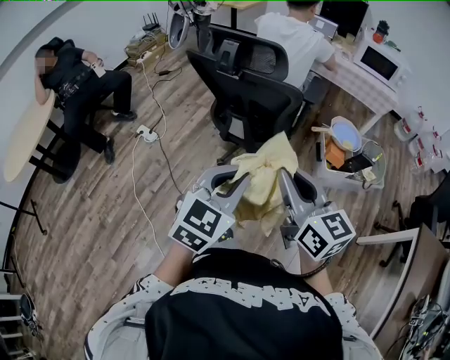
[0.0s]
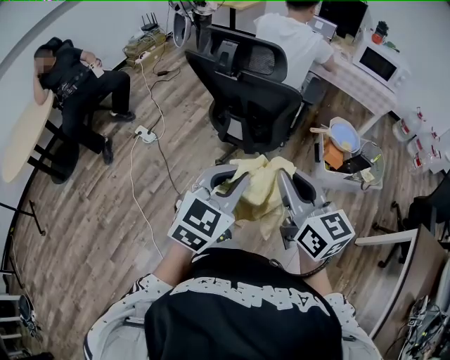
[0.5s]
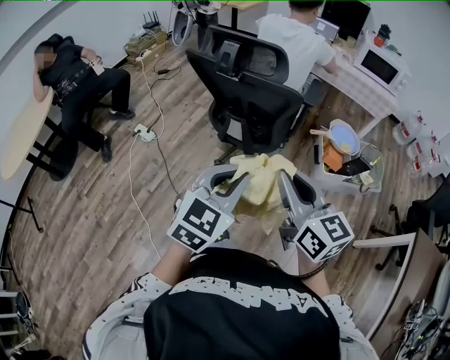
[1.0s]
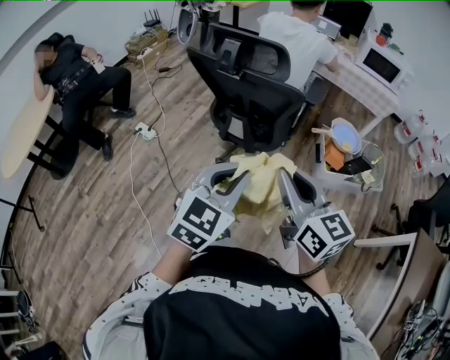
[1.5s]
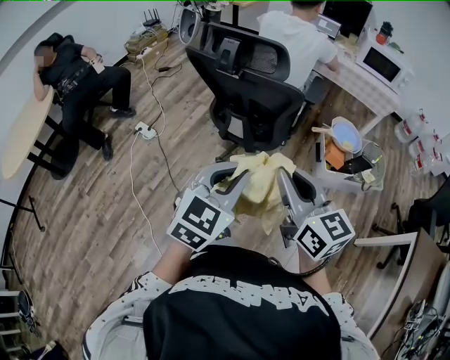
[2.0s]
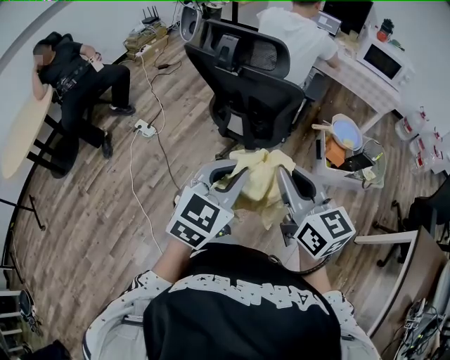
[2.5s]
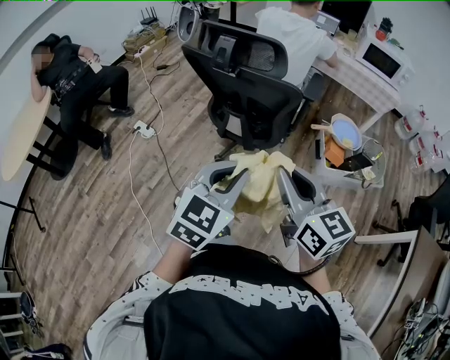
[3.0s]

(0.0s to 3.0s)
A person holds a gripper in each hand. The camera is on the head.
0.0s - 1.5s: The grippers stay close to where they were, moving slightly.
1.5s - 3.0s: Both grippers stay put.

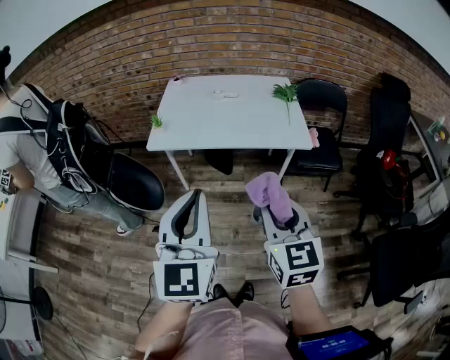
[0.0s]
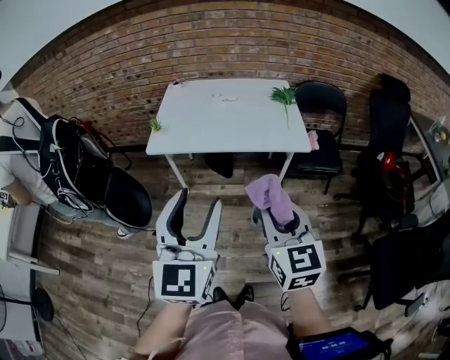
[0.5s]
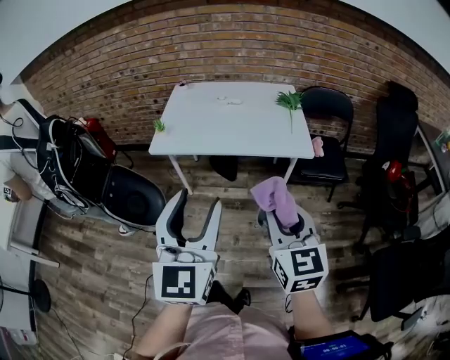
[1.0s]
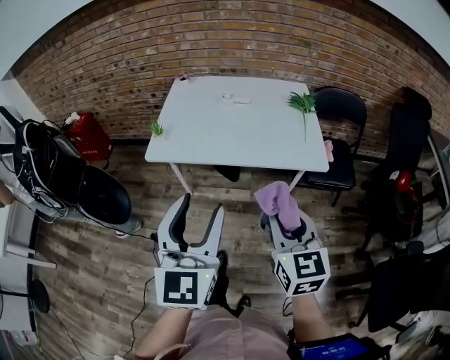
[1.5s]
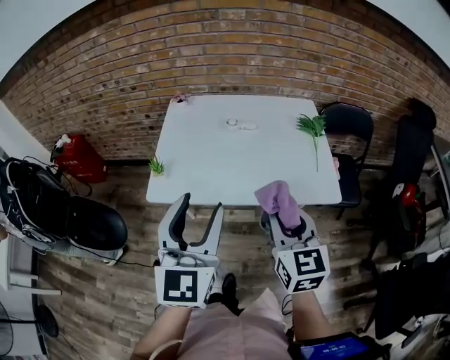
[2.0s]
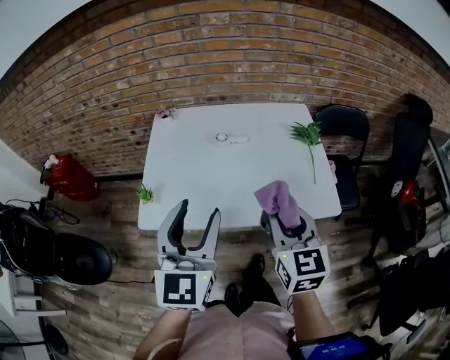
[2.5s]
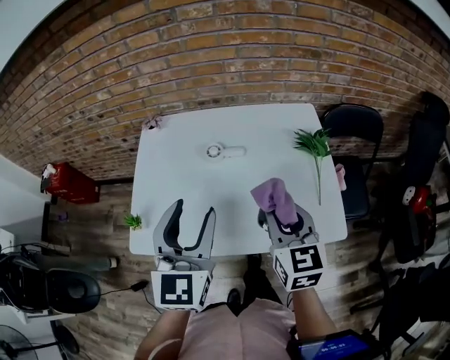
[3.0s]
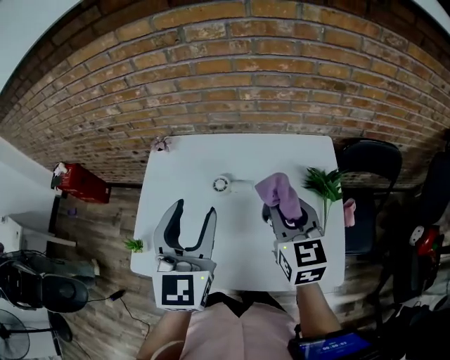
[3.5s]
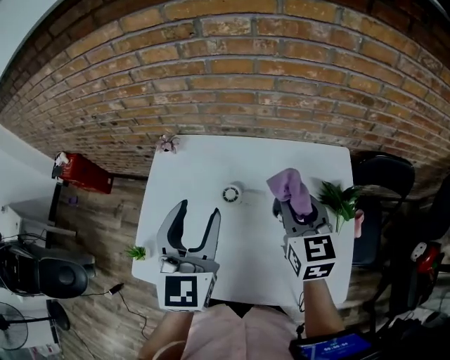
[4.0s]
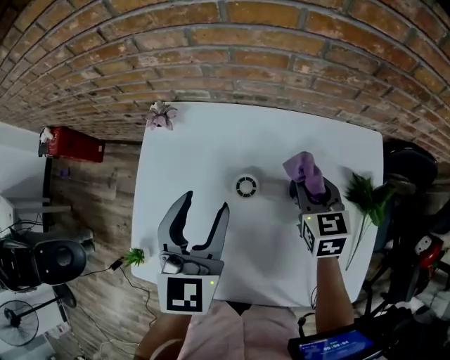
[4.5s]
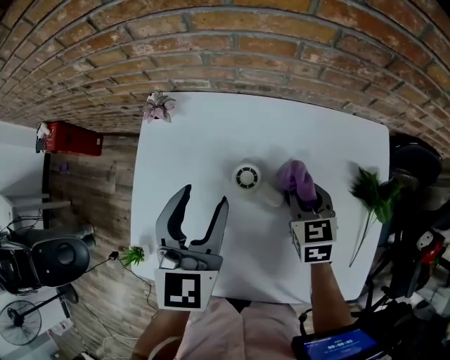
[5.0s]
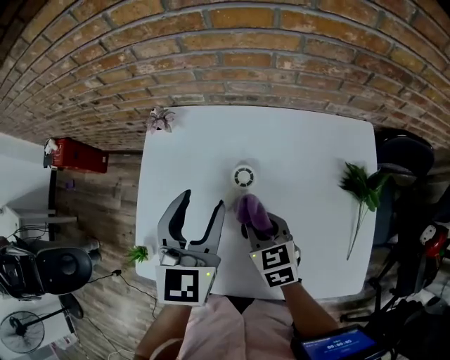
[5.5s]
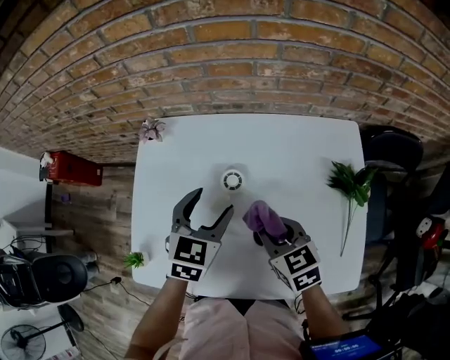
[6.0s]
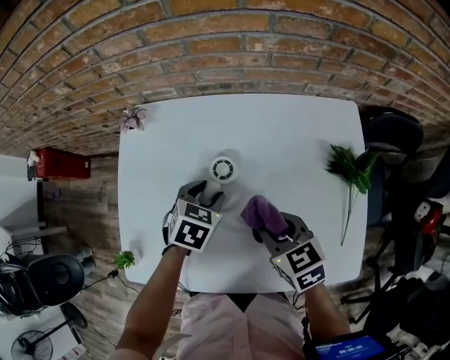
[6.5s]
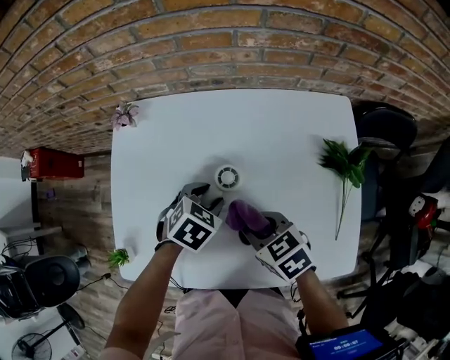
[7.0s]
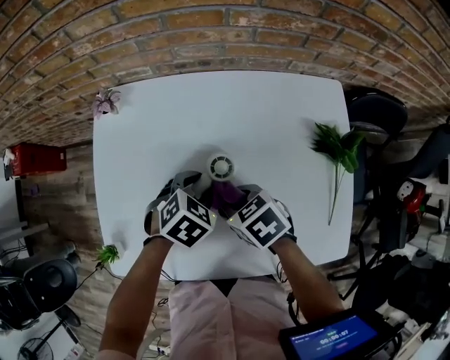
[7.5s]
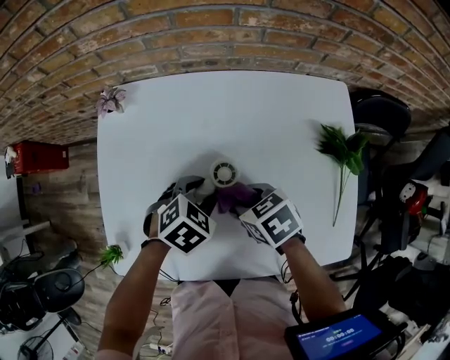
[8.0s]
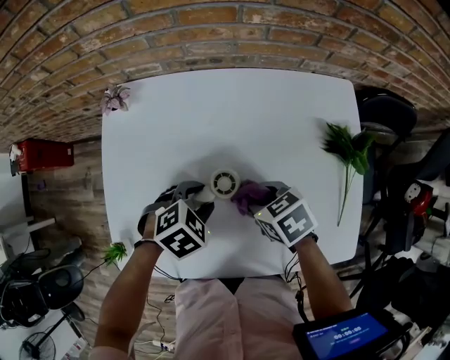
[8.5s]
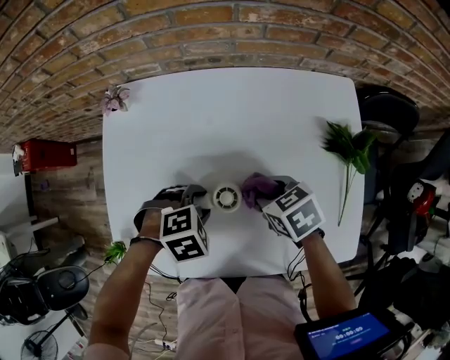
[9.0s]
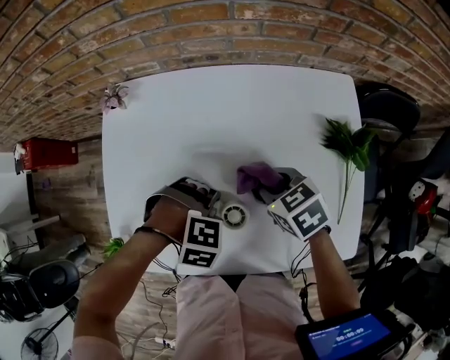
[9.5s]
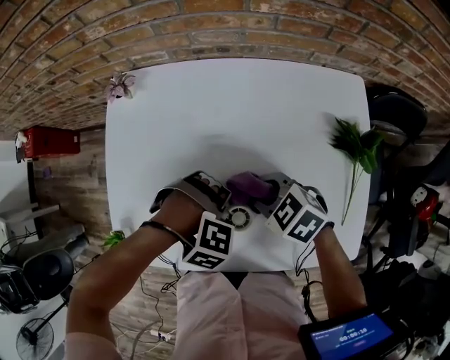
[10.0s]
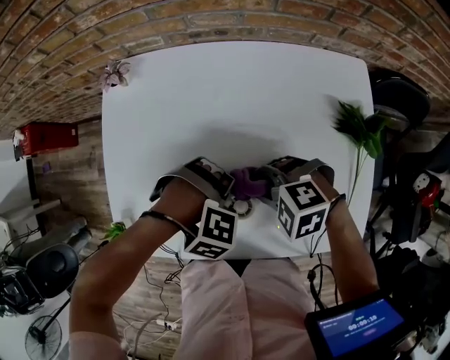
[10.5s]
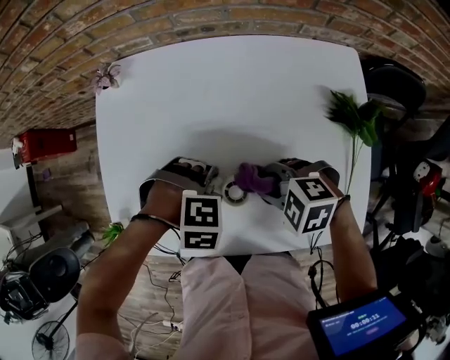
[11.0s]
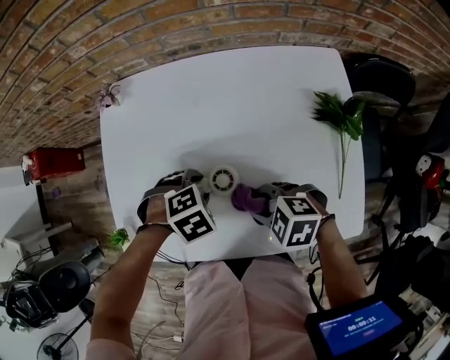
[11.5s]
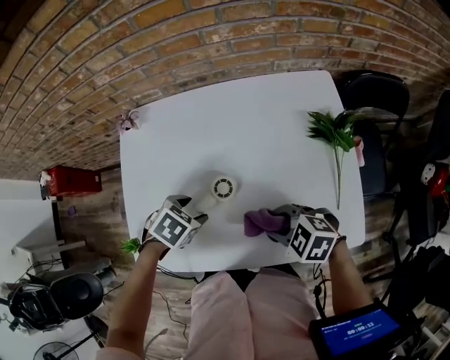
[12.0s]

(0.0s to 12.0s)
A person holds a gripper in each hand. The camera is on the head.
0.0s - 2.0s: The two grippers go roughly 25 cm forward. The left gripper opens.
2.0s - 4.0s: The two grippers go approximately 40 cm forward.
4.0s - 6.0s: The right gripper goes about 15 cm downward, to the left and backward, and swivels approximately 30 degrees. Meanwhile the left gripper goes some 15 cm downward, and swivels roughly 30 degrees.
6.0s - 8.0s: The right gripper is displaced downward by some 5 cm, and swivels some 20 degrees; the left gripper is displaced downward by about 10 cm, and changes its angle by roughly 40 degrees.
8.0s - 10.0s: The left gripper moves some 10 cm, and rotates around the line of its fingers by roughly 70 degrees, clockwise from behind. Meanwhile the right gripper changes its angle by approximately 30 degrees.
10.0s - 12.0s: The right gripper shifts by some 15 cm. The left gripper changes place by roughly 5 cm, and rolls counterclockwise, seen from behind, by roughly 70 degrees.

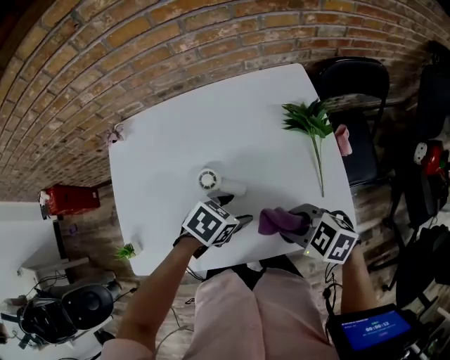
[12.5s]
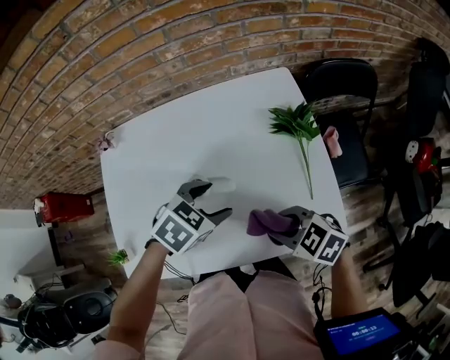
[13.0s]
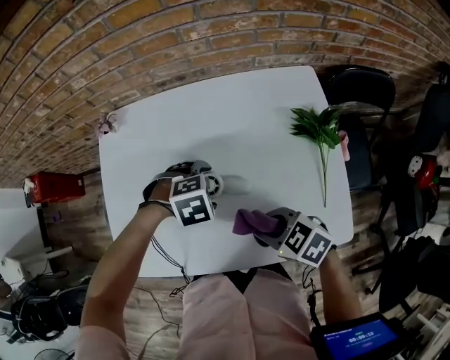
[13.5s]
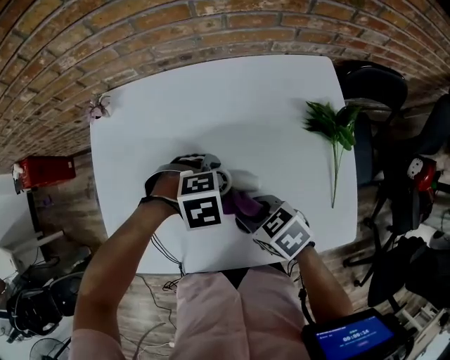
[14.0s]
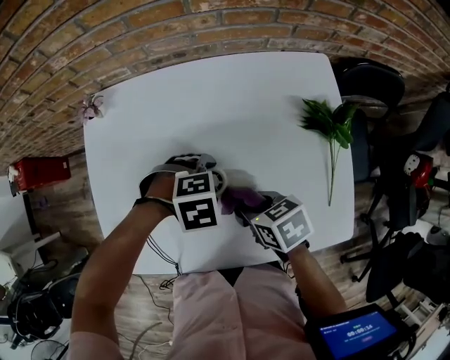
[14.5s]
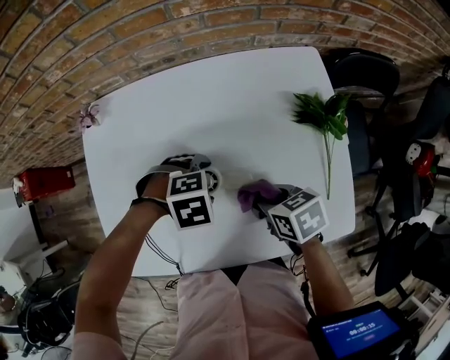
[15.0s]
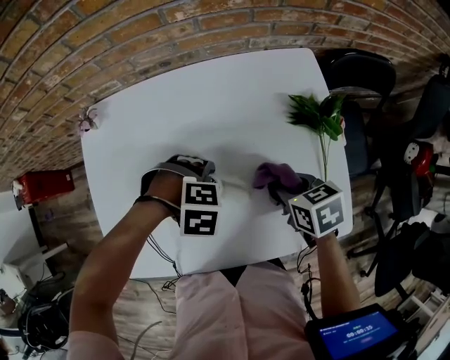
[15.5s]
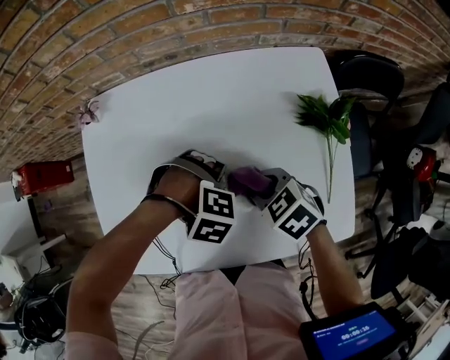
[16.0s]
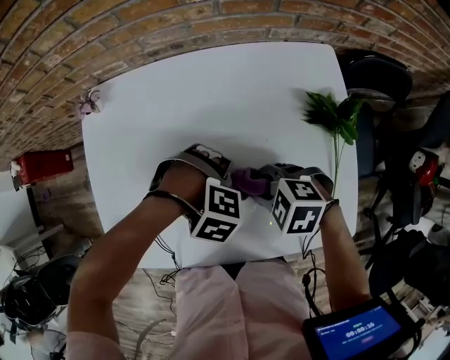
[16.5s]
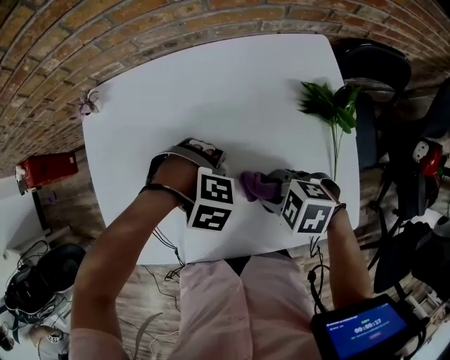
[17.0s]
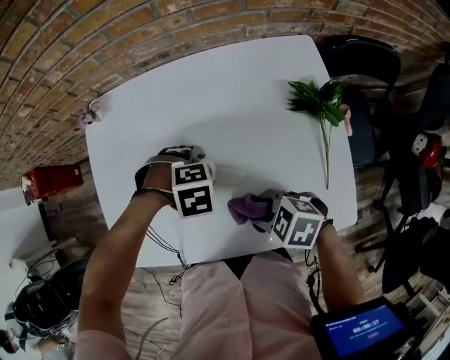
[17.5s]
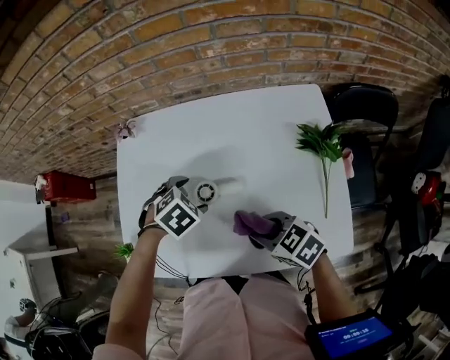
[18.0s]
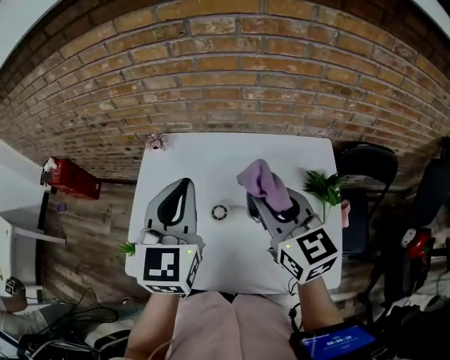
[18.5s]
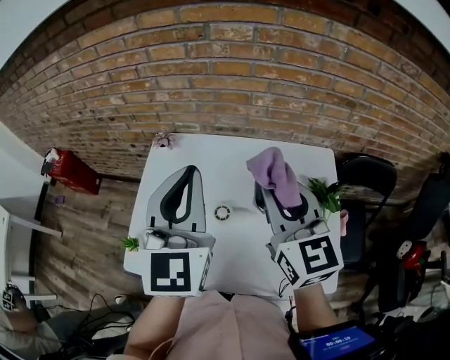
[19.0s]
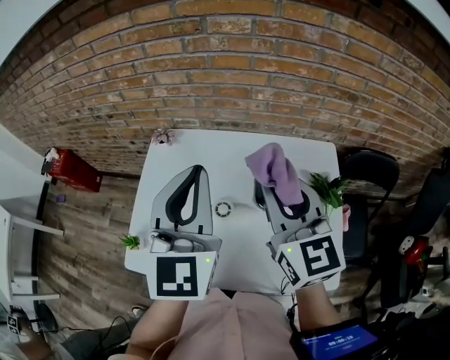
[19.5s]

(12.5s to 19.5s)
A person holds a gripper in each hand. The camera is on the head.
12.5s - 14.5s: The left gripper goes upward and returns, approximately 5 cm each way, and swivels about 40 degrees. Meanwhile the right gripper moves some 15 cm, and swivels approximately 40 degrees.
14.5s - 16.0s: The right gripper turns by about 30 degrees. Meanwhile the left gripper turns by roughly 30 degrees.
16.0s - 17.5s: The left gripper changes its angle by approximately 30 degrees; the right gripper shifts by approximately 10 cm, and turns by about 20 degrees.
17.5s - 19.5s: The two grippers go about 35 cm upward. The left gripper tilts its fingers about 90 degrees upward, and closes up. Meanwhile the right gripper points its fingers about 50 degrees further upward.

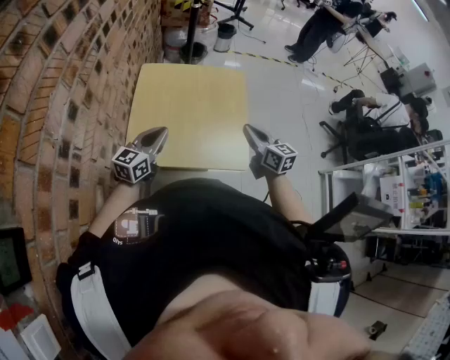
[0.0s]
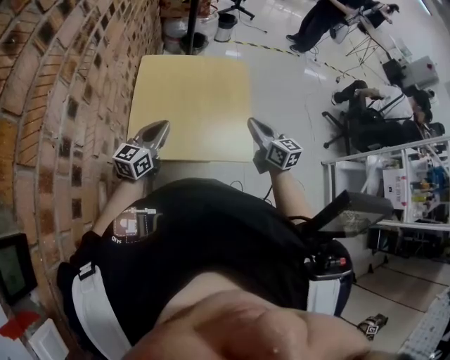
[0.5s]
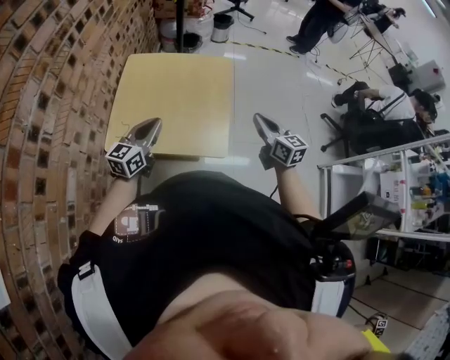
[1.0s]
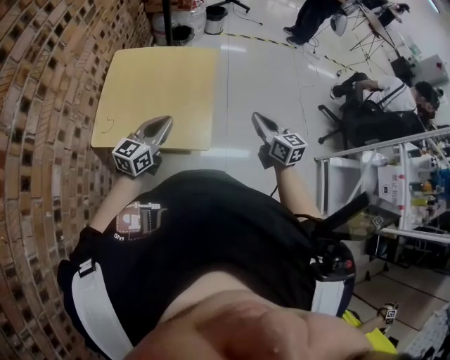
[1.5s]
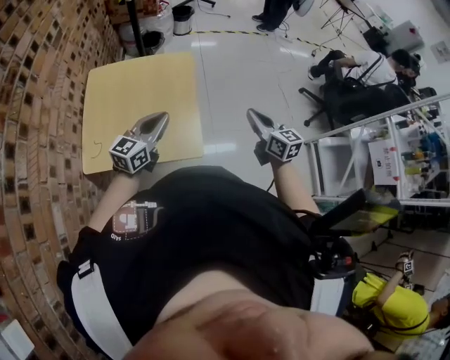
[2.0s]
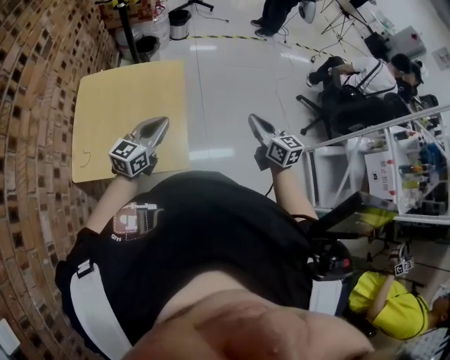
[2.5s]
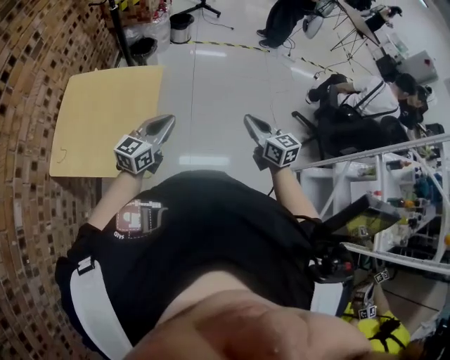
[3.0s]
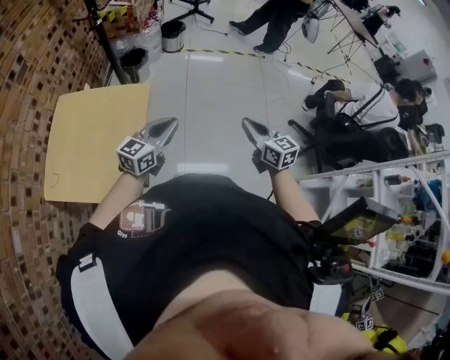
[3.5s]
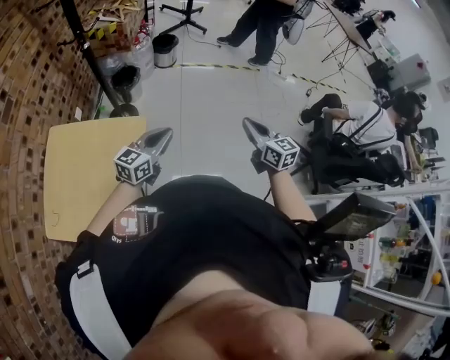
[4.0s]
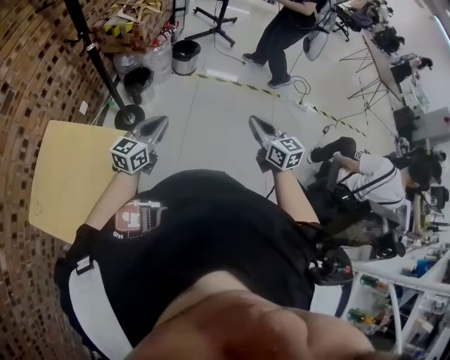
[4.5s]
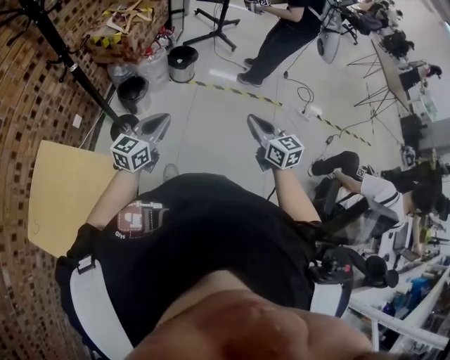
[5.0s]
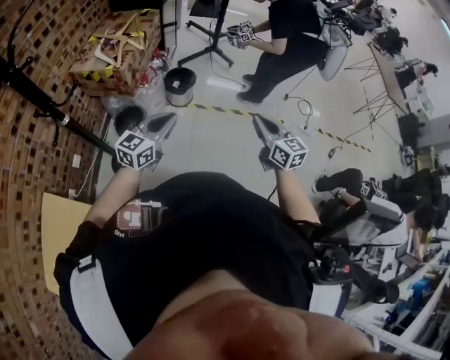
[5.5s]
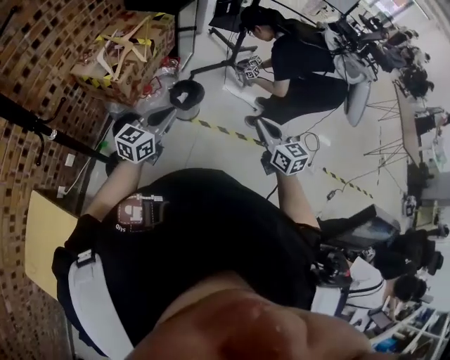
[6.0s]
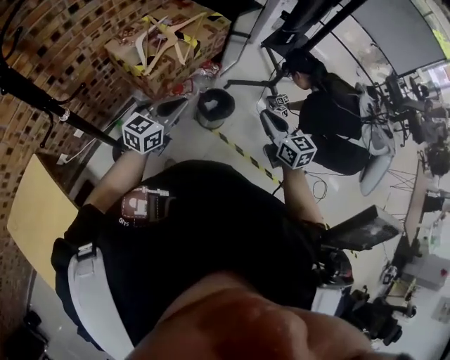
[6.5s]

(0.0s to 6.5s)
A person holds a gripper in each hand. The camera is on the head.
0.0s - 2.0s: Both grippers move to the right, approximately 25 cm.
2.0s - 4.5s: The two grippers travel together, forward and to the right, roughly 60 cm. The right gripper rotates roughly 20 degrees.
4.5s - 6.5s: The two grippers travel together, about 70 cm. The right gripper swivels roughly 30 degrees; the left gripper changes its angle by approximately 20 degrees.
